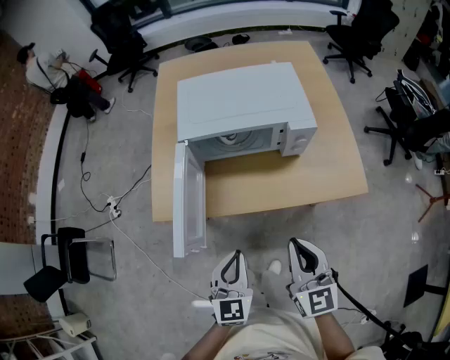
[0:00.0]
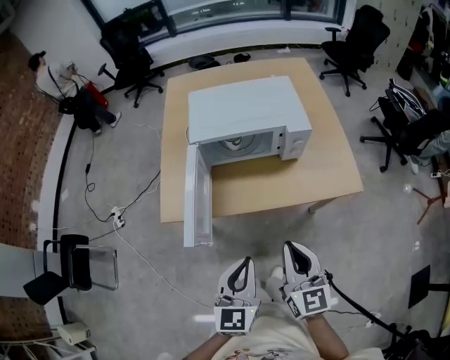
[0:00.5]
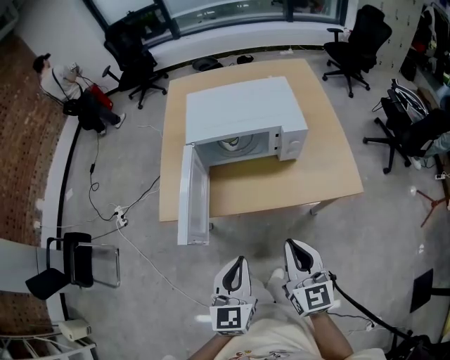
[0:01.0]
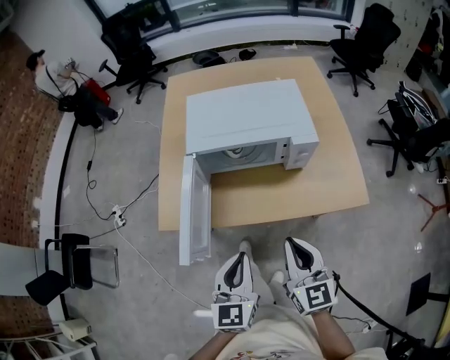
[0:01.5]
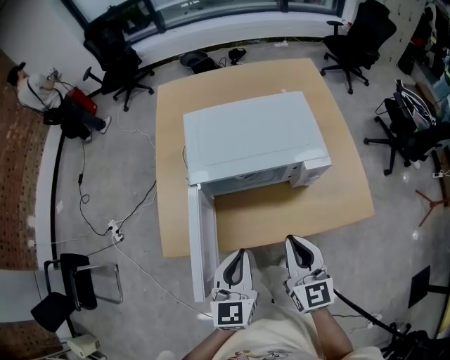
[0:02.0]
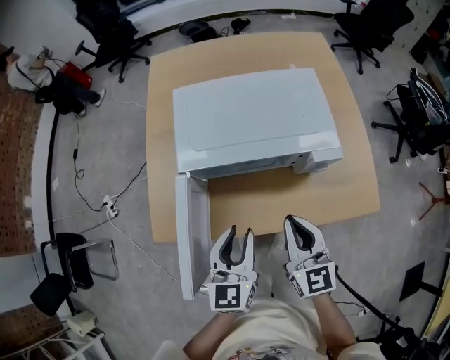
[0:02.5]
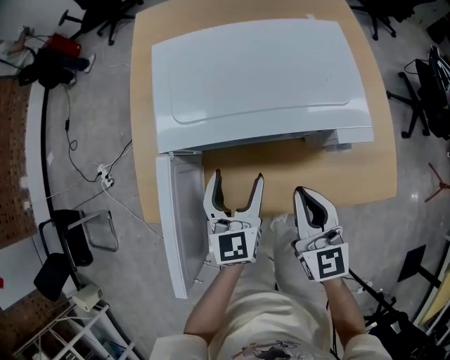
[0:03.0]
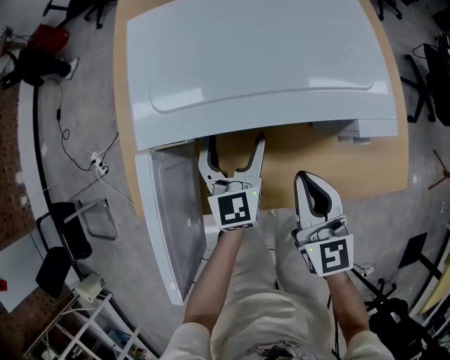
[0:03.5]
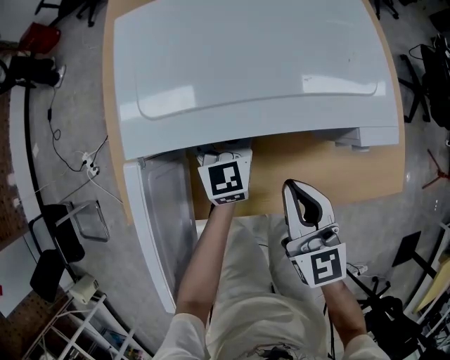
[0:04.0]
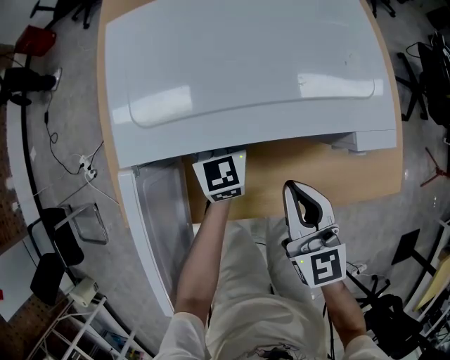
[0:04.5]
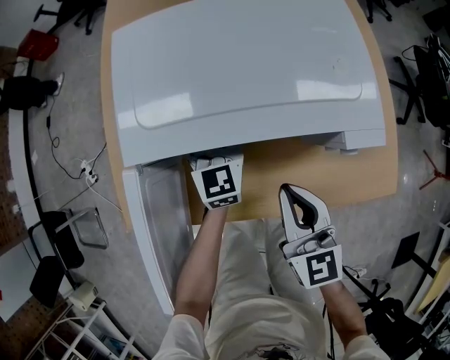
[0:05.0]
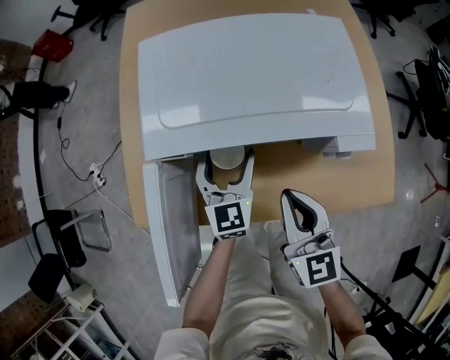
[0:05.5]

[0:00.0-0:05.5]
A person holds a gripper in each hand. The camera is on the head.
0:00.0 to 0:02.0: The right gripper is displaced forward by approximately 10 cm. Meanwhile the left gripper goes about 15 cm forward and upward.
0:02.0 to 0:03.5: The left gripper heads forward and downward, covering about 30 cm, and opens. The right gripper is displaced downward and forward by roughly 20 cm.
0:03.5 to 0:05.5: The left gripper reaches about 10 cm forward, then returns.

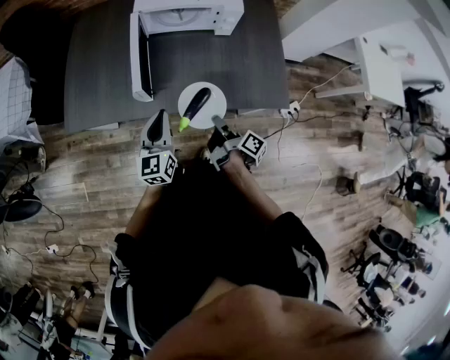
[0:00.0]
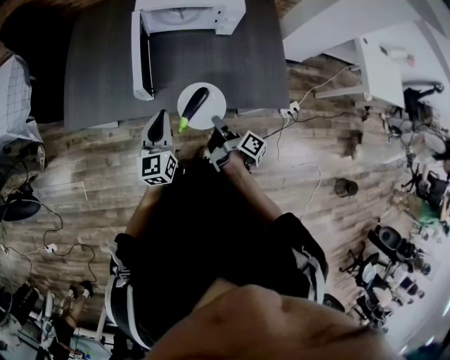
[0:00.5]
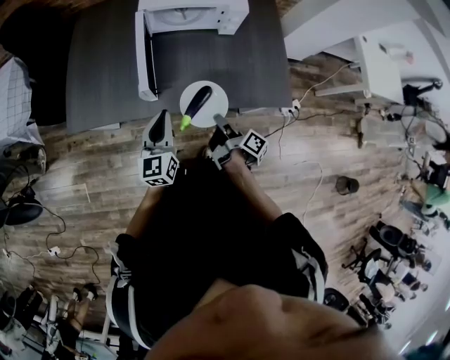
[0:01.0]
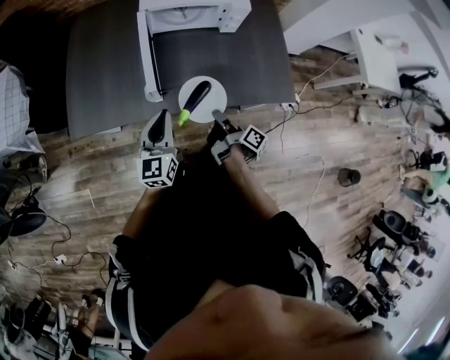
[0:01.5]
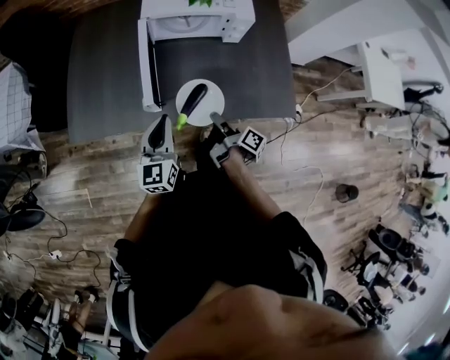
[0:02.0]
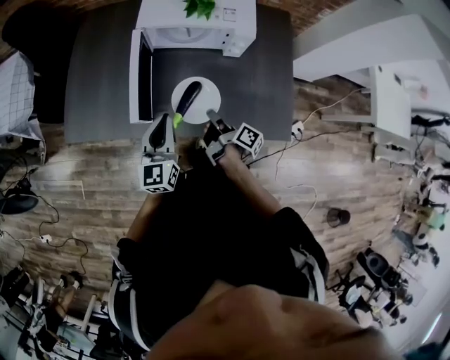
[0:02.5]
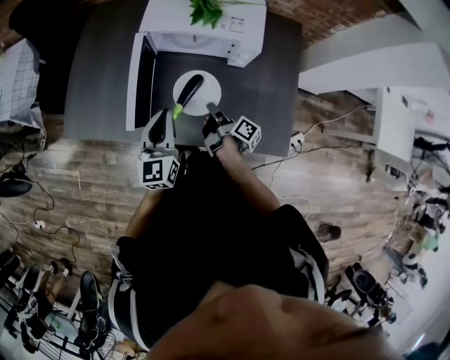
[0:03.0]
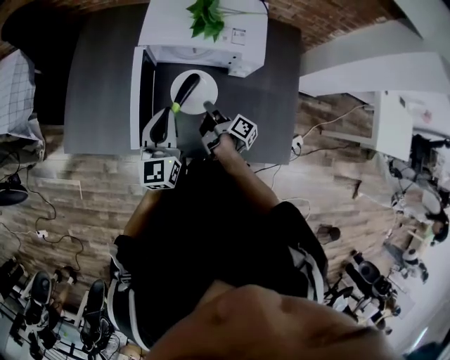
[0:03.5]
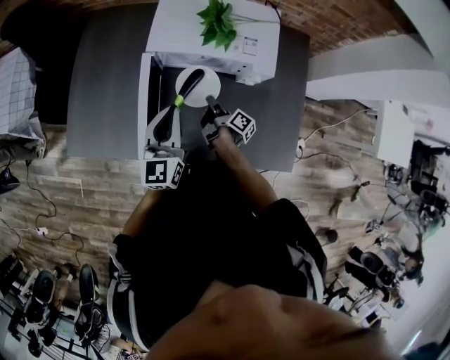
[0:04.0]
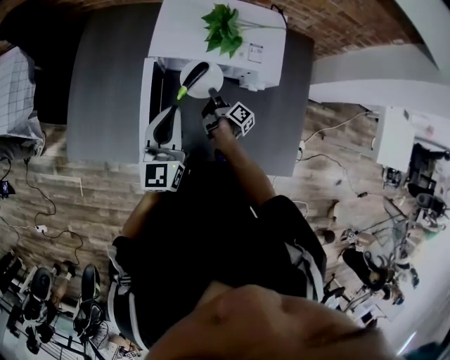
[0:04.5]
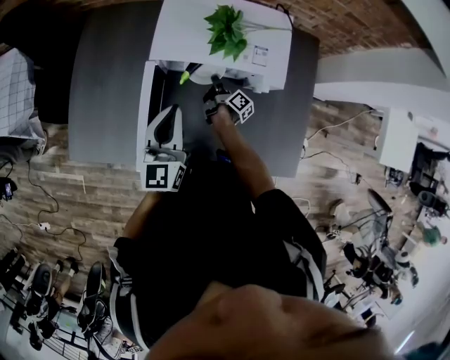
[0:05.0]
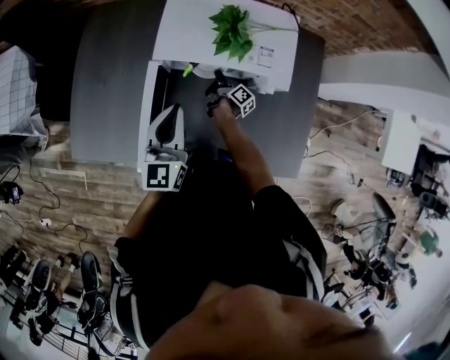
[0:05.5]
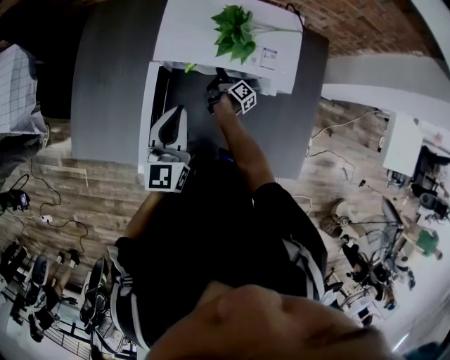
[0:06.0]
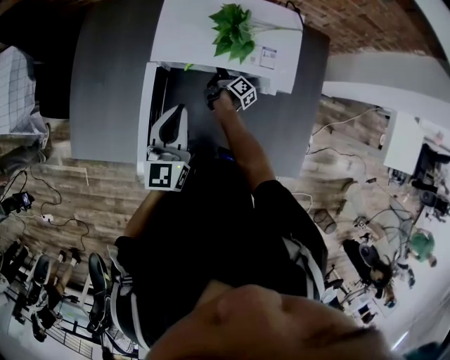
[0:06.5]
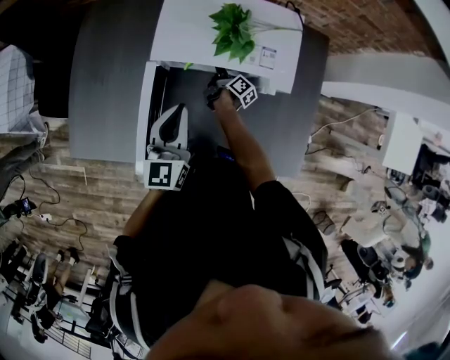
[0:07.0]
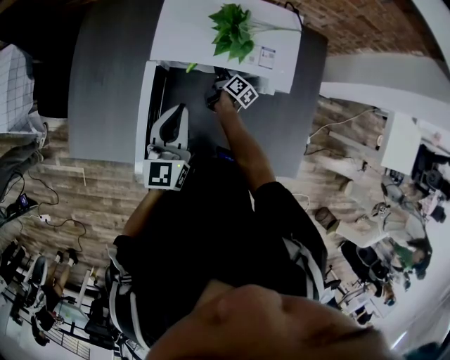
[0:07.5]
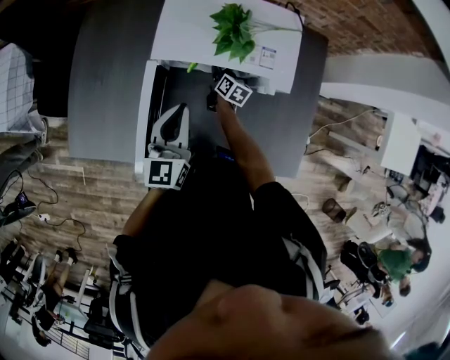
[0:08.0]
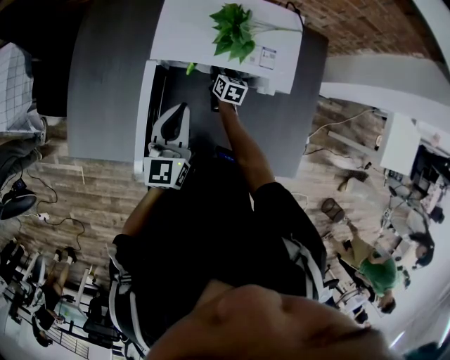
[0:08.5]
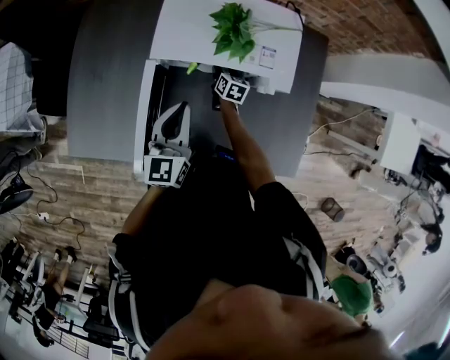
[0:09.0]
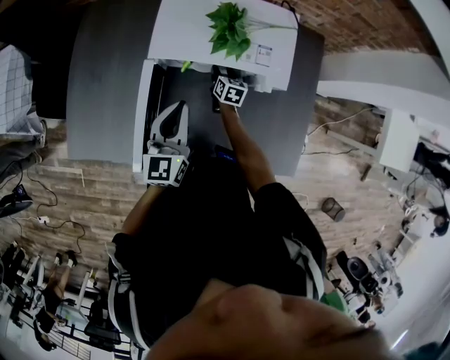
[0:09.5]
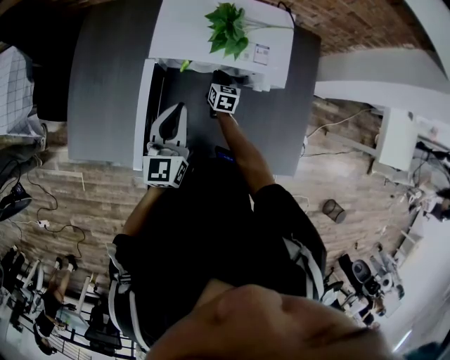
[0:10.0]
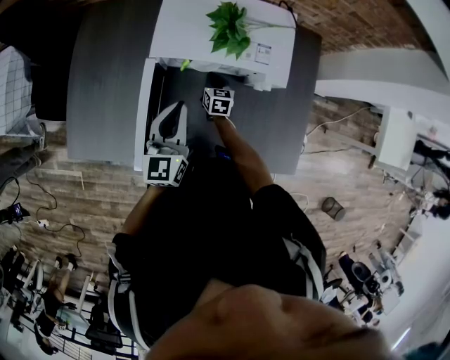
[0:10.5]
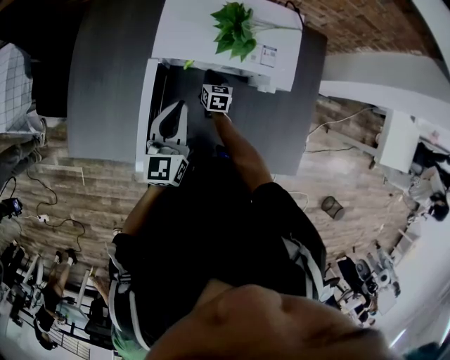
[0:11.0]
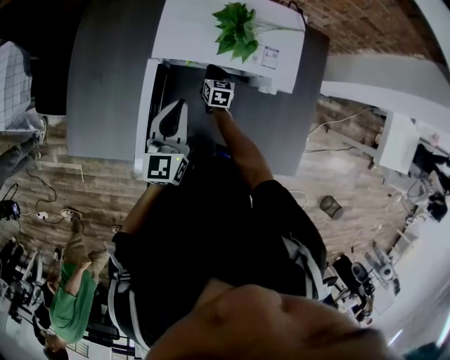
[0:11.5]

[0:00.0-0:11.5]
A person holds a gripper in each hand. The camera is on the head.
0:00.0 to 0:02.0: The left gripper shifts by about 5 cm, while the right gripper travels forward by roughly 5 cm.
0:02.0 to 0:04.0: The right gripper moves forward, some 25 cm. The left gripper travels forward and to the right by approximately 20 cm.
0:04.0 to 0:06.0: The left gripper shifts some 5 cm forward. The right gripper goes some 20 cm forward and downward.
0:06.0 to 0:07.5: The right gripper swivels approximately 20 degrees, and opens.
0:07.5 to 0:09.5: The right gripper rotates around the line of its fingers by roughly 40 degrees, counterclockwise from behind, and opens.
0:09.5 to 0:11.5: The right gripper travels to the left by roughly 5 cm, and closes.

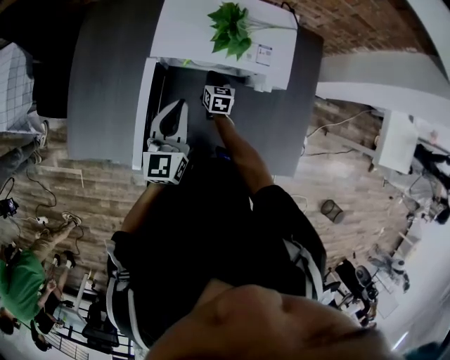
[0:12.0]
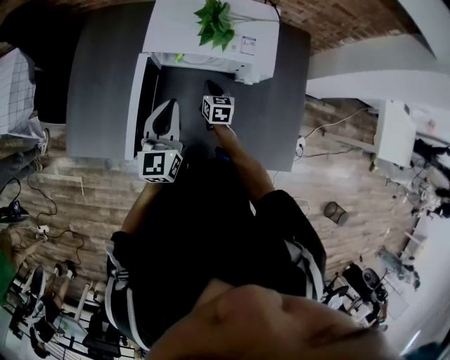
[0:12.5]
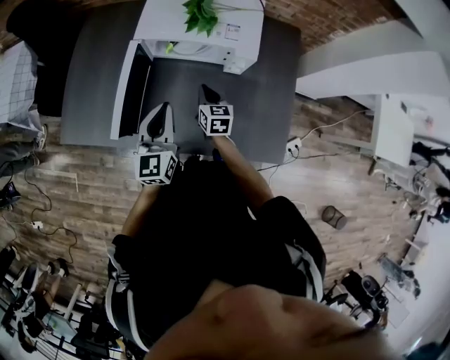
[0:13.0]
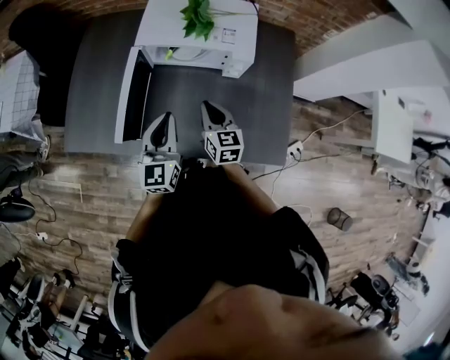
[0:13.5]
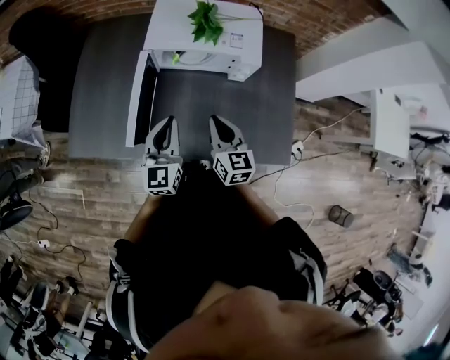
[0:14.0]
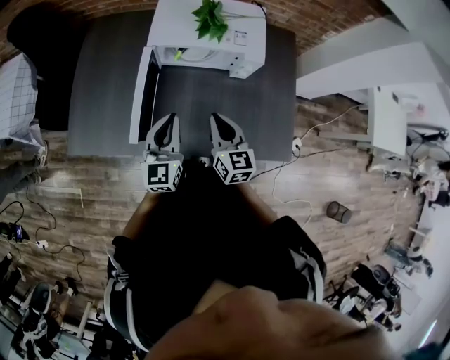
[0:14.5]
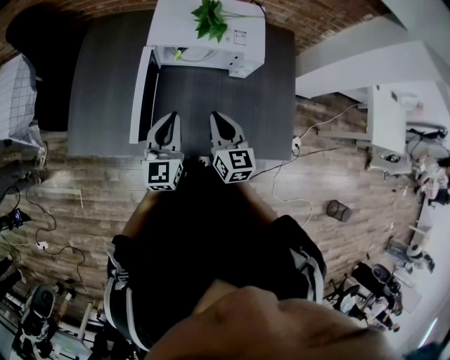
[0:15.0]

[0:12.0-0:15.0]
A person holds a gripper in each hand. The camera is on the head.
0:12.0 to 0:13.5: The right gripper heads backward and upward, covering roughly 30 cm; the left gripper heads backward, covering roughly 15 cm.
0:13.5 to 0:15.0: The right gripper shifts some 5 cm upward.

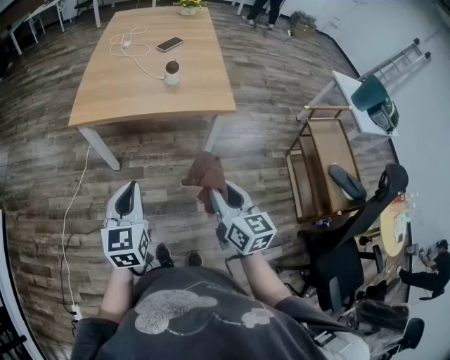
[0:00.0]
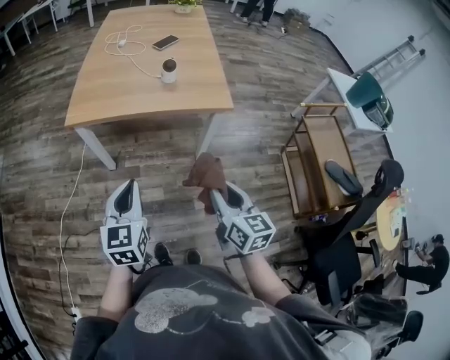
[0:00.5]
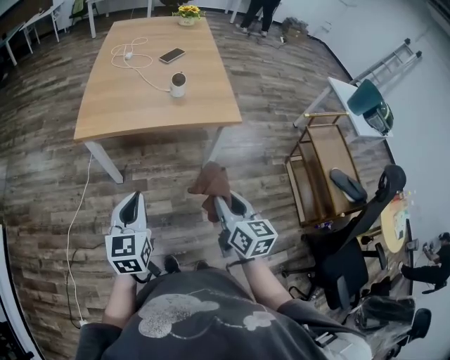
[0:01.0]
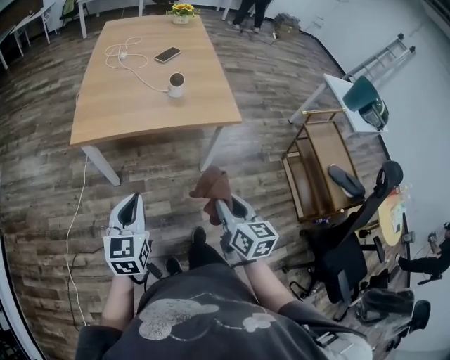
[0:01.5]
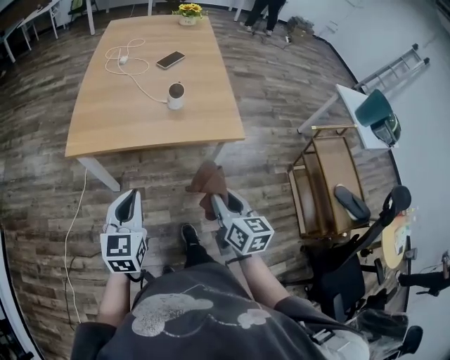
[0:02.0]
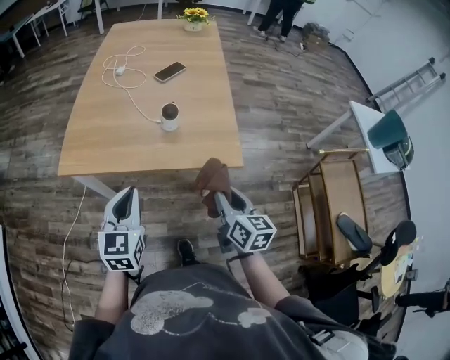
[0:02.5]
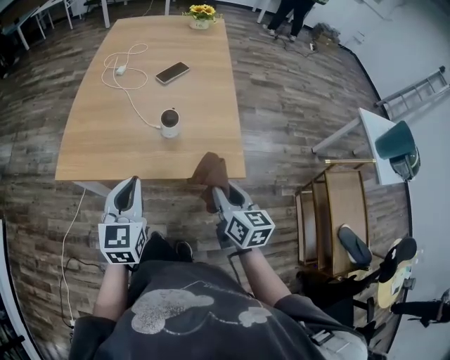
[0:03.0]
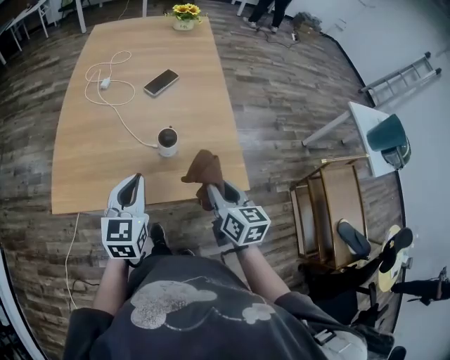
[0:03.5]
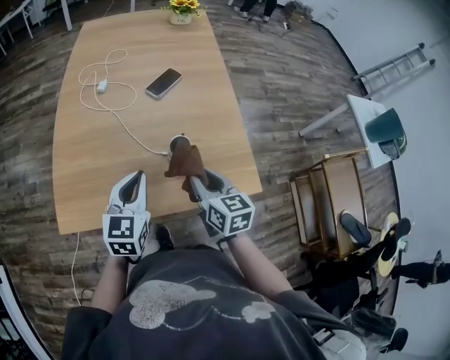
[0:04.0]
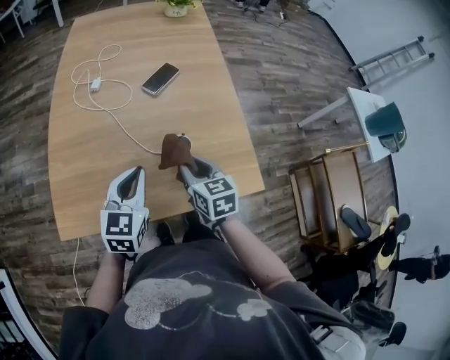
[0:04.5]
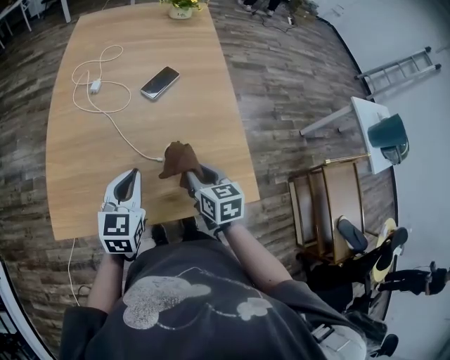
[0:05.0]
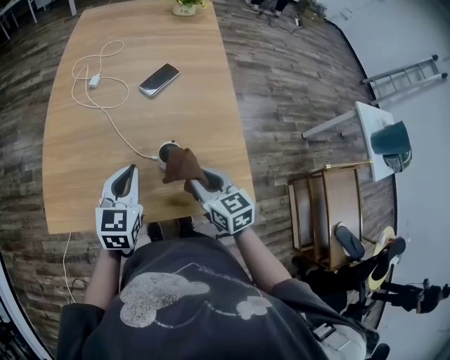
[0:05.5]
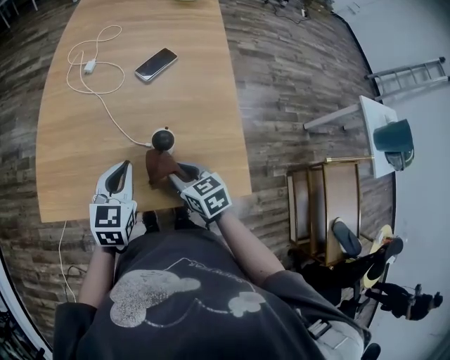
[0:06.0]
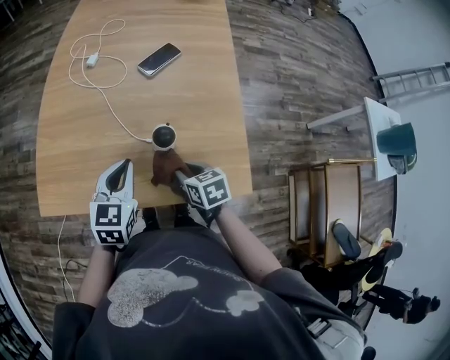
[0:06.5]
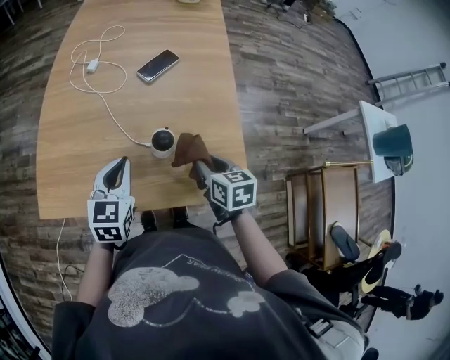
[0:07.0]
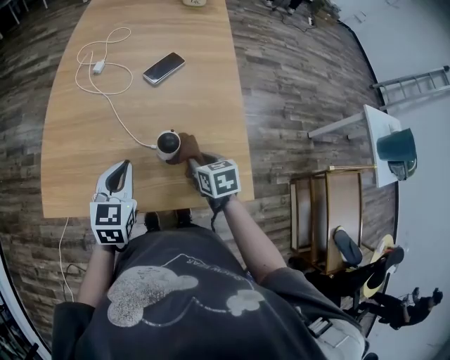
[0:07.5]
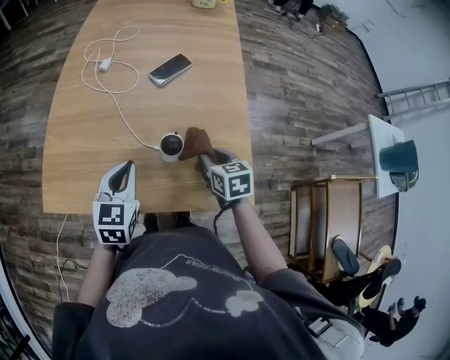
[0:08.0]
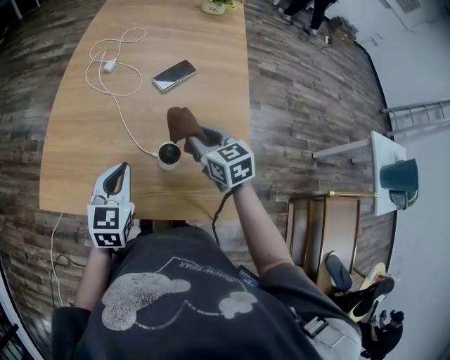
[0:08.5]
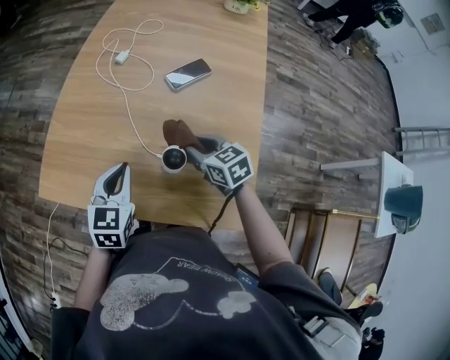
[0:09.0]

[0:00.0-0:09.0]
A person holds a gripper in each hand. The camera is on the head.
0:00.0 to 0:02.0: The grippers both shift forward by approximately 10 cm.
0:02.0 to 0:04.5: The grippers both shift forward by some 35 cm.
0:04.5 to 0:07.0: The right gripper goes left and right, roughly 10 cm each way, reversing 2 times.
0:07.0 to 0:09.0: The right gripper is displaced forward and to the left by about 15 cm, and turns by roughly 40 degrees.
